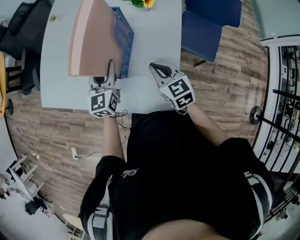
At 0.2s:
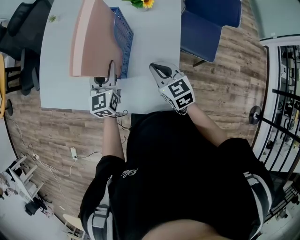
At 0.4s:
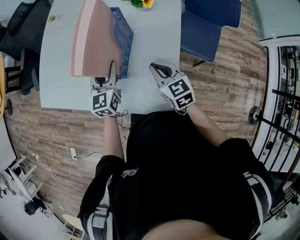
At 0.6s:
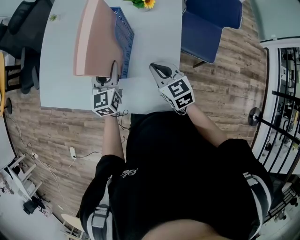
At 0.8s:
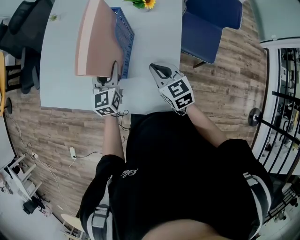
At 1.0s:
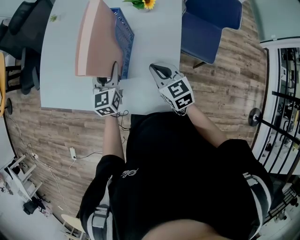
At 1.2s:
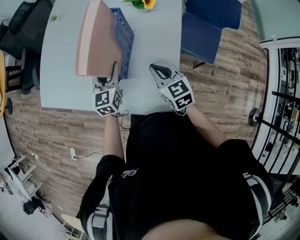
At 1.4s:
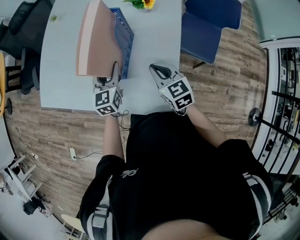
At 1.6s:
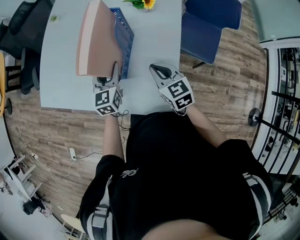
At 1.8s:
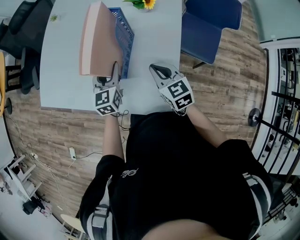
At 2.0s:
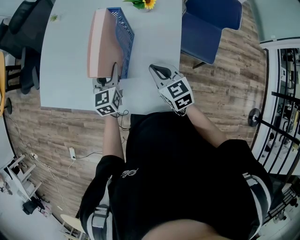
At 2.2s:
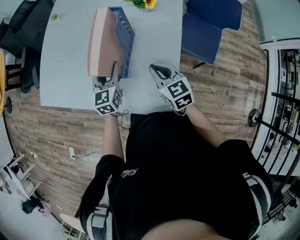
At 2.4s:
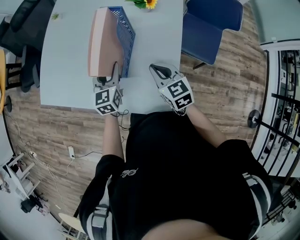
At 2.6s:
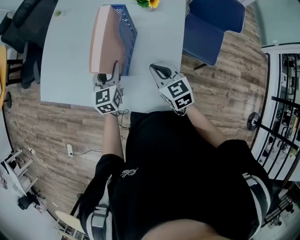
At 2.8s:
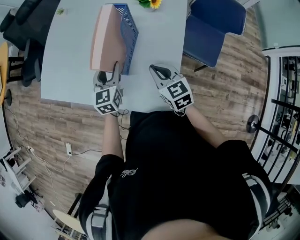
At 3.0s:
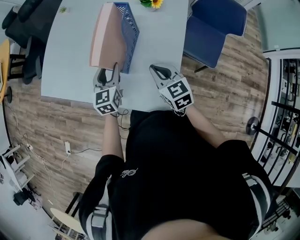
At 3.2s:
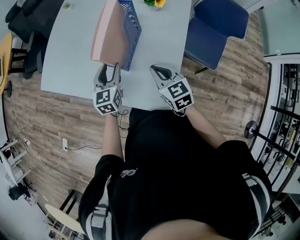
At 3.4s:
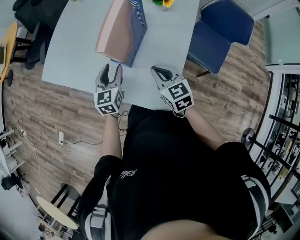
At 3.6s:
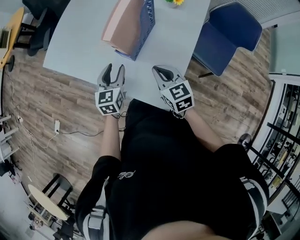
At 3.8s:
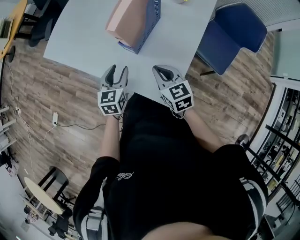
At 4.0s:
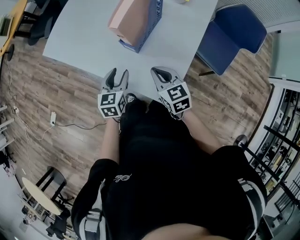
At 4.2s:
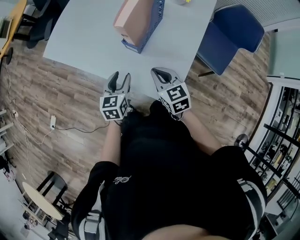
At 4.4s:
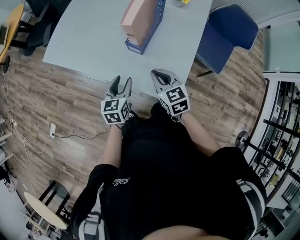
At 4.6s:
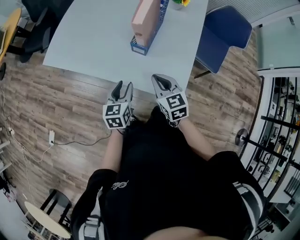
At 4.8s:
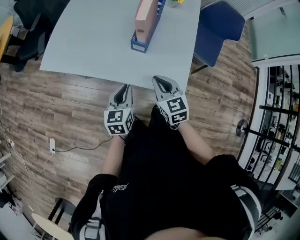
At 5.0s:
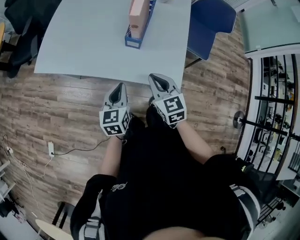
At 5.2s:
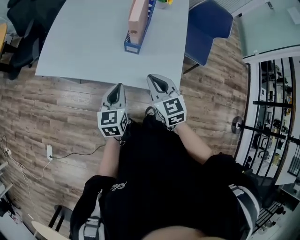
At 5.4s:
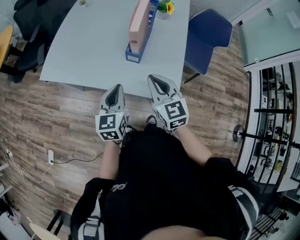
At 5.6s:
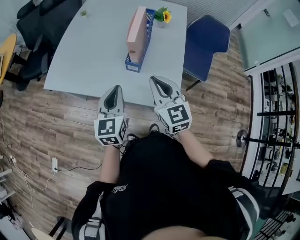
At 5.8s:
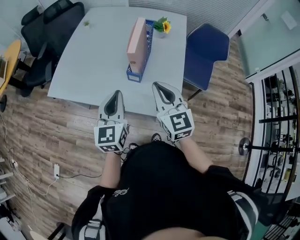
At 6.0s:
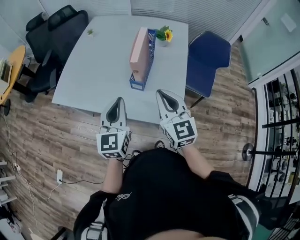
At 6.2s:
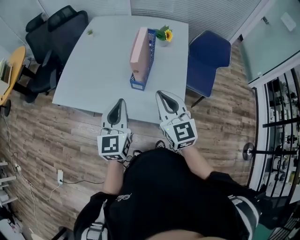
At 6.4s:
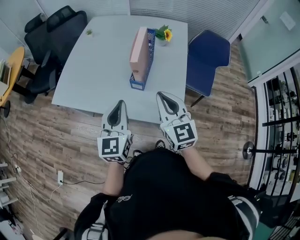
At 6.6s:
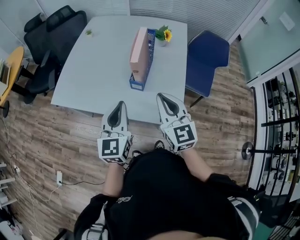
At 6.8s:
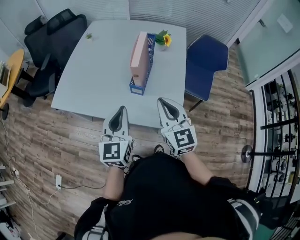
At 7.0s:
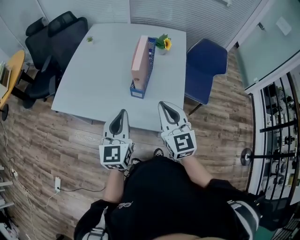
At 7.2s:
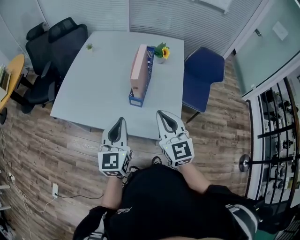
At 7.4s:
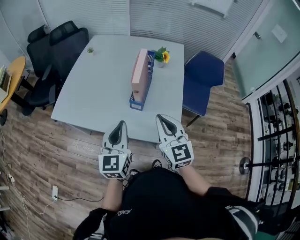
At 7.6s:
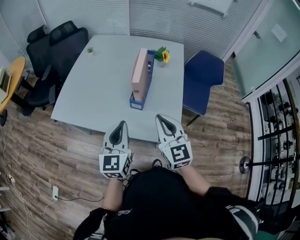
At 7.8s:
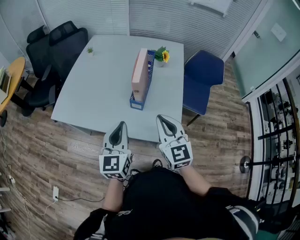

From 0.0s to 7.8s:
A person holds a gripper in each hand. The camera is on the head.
From 0.0s to 1.6s: There are only small adjustments of the grippers.
From 1.6s to 3.2s: The left gripper shifts by about 5 cm.
From 3.2s to 4.6s: The right gripper shifts approximately 15 cm to the left and backward; the left gripper moves backward and to the left, about 20 cm.
From 4.6s to 6.2s: Both grippers travel together upward, roughly 20 cm. The left gripper turns by approximately 30 degrees, and closes its fingers. The right gripper changes its angle by some 30 degrees.
From 6.2s to 7.8s: The grippers make only small movements.

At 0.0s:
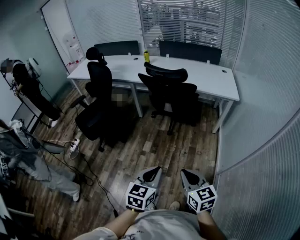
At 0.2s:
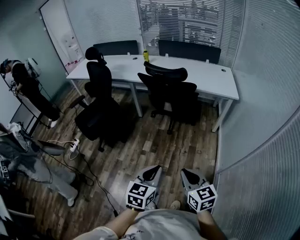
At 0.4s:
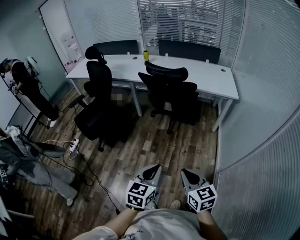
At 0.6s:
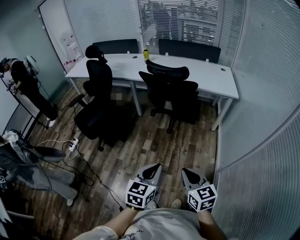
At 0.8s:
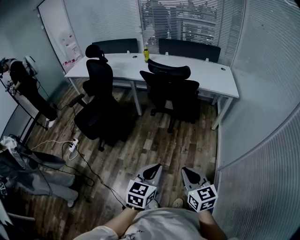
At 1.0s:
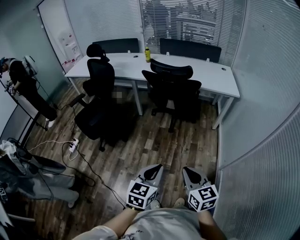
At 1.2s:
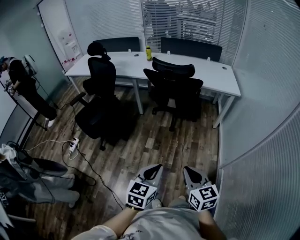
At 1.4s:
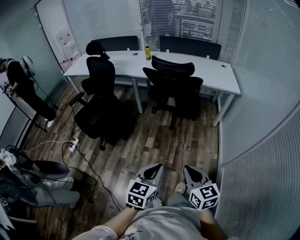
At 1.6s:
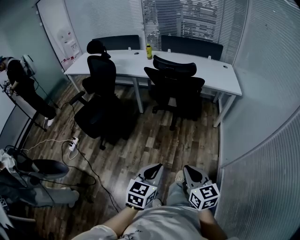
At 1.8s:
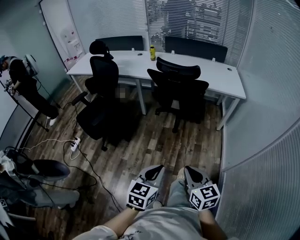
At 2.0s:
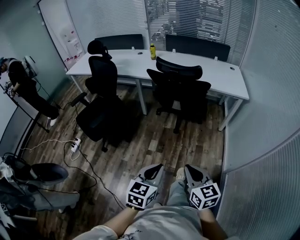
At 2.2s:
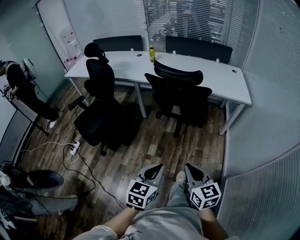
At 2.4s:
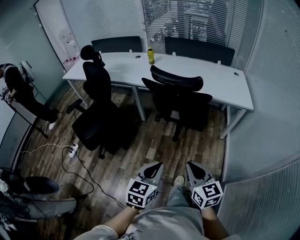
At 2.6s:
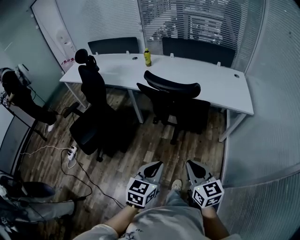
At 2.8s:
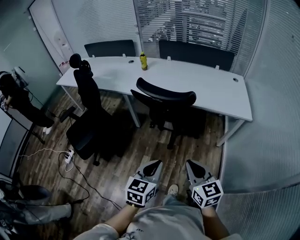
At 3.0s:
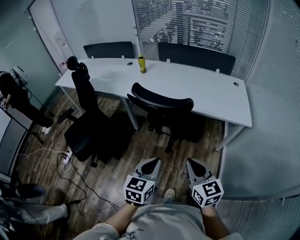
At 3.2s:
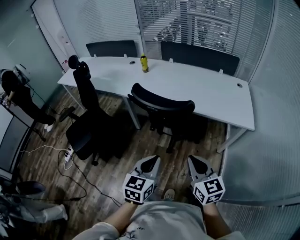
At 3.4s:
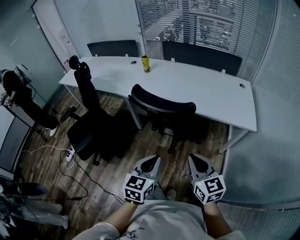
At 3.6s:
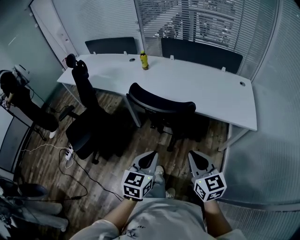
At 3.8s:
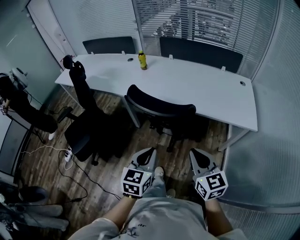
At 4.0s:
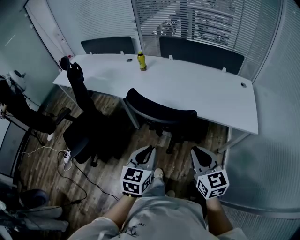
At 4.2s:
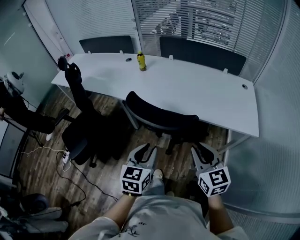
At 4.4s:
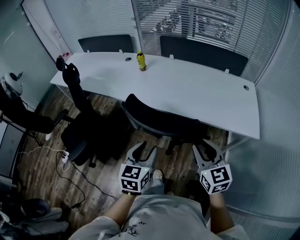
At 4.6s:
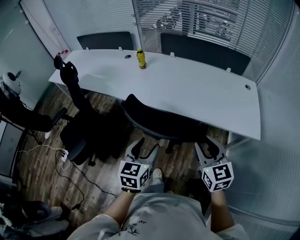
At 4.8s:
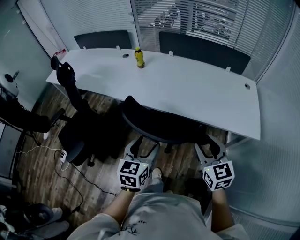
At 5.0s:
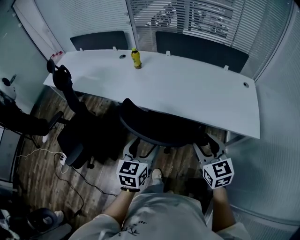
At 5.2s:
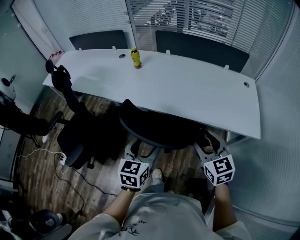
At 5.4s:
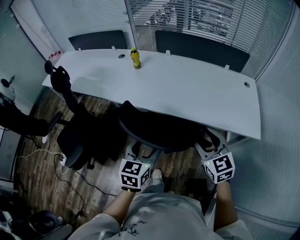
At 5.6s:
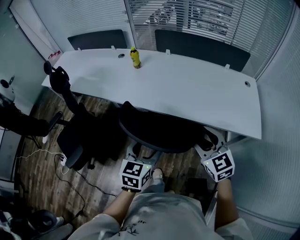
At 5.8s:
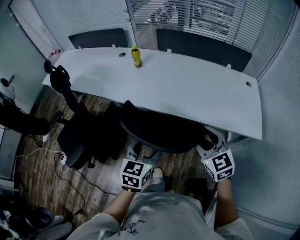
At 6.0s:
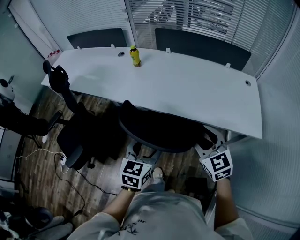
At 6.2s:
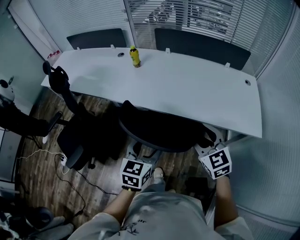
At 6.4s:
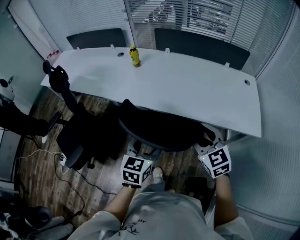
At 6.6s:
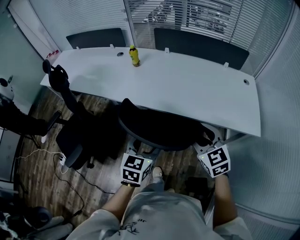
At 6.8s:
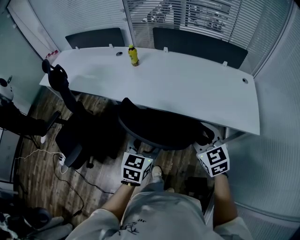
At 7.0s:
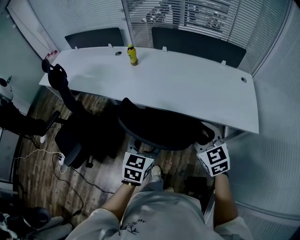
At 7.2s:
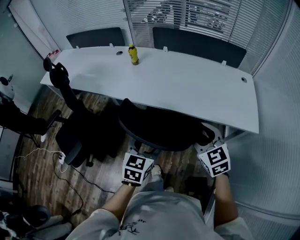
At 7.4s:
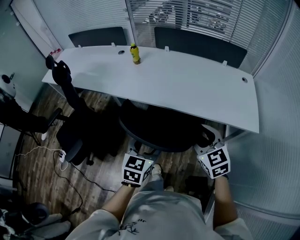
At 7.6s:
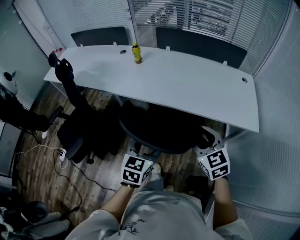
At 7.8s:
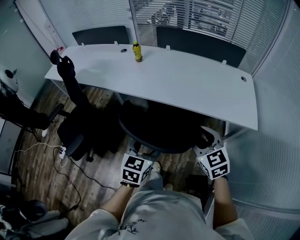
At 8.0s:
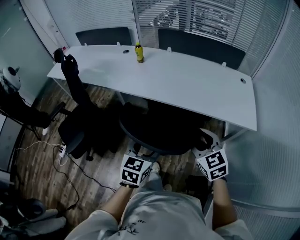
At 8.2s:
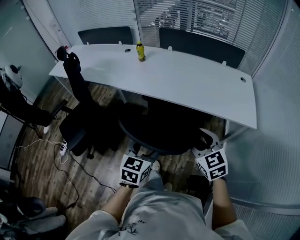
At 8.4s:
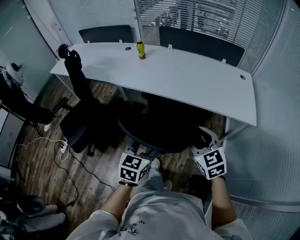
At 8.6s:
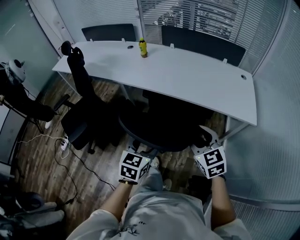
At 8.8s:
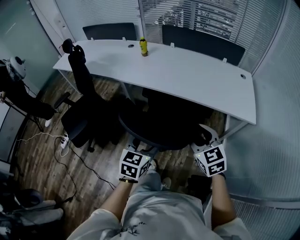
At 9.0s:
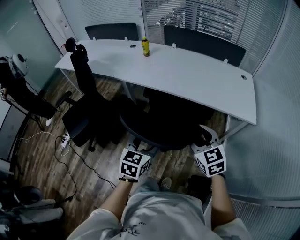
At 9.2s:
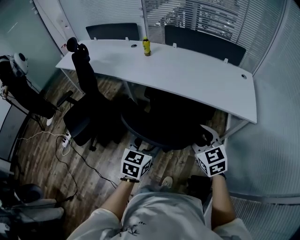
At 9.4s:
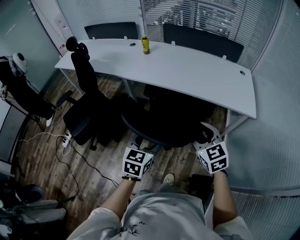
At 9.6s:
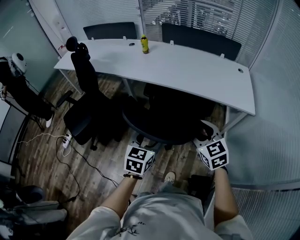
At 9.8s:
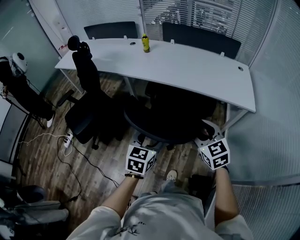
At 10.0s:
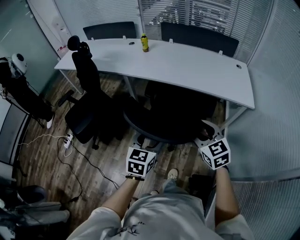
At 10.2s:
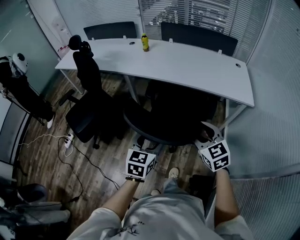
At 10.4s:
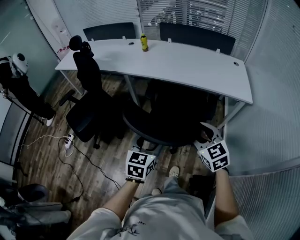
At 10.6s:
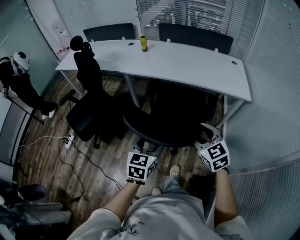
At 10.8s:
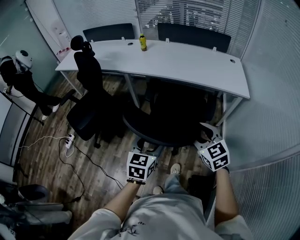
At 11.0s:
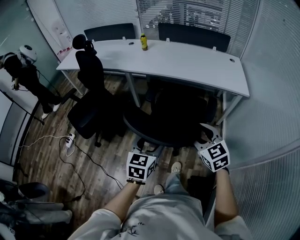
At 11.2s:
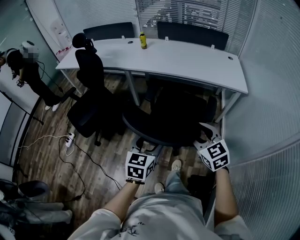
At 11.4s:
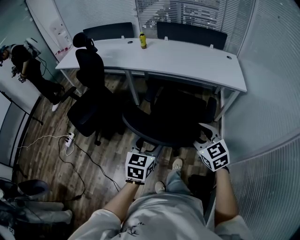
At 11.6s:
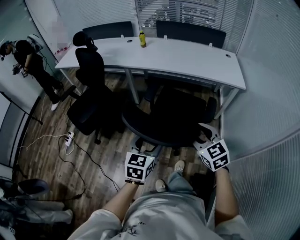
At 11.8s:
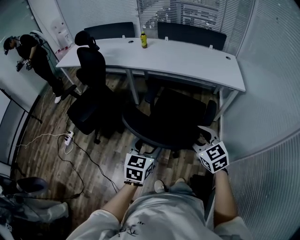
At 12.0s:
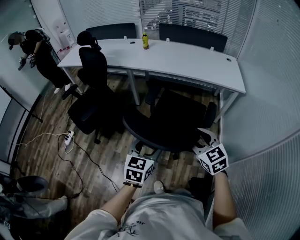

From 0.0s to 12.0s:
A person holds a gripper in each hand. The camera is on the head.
From 0.0s to 1.6s: The grippers both shift to the left by some 10 cm.
From 1.6s to 3.0s: Both grippers are carried forward, roughly 40 cm.
From 3.0s to 4.4s: The grippers both shift forward by roughly 20 cm. The right gripper opens. Meanwhile the left gripper opens up.
From 4.4s to 6.0s: The two grippers go about 10 cm forward. The left gripper opens up. The right gripper opens its fingers.
From 6.0s to 7.6s: The two grippers go about 5 cm backward.
From 7.6s to 9.0s: Both grippers travel together backward, roughly 15 cm.
From 9.0s to 10.4s: Both grippers move backward, roughly 15 cm.
From 10.4s to 12.0s: The grippers both shift backward by roughly 15 cm.

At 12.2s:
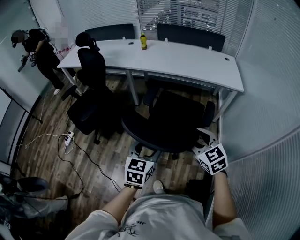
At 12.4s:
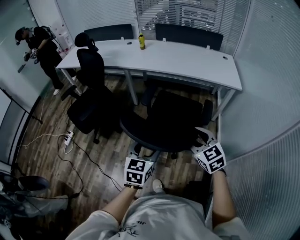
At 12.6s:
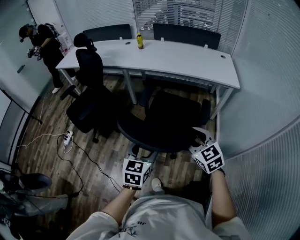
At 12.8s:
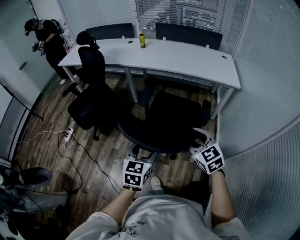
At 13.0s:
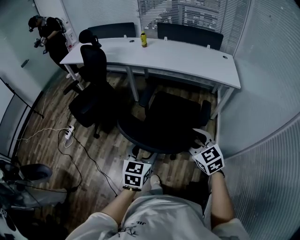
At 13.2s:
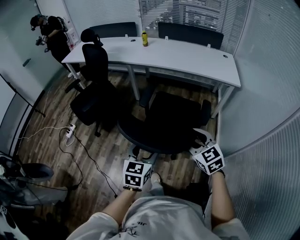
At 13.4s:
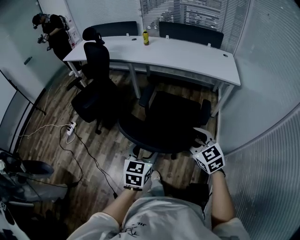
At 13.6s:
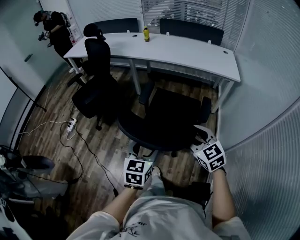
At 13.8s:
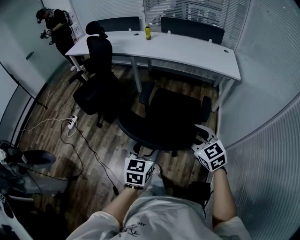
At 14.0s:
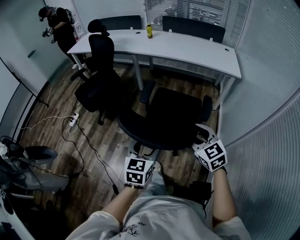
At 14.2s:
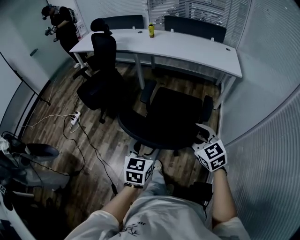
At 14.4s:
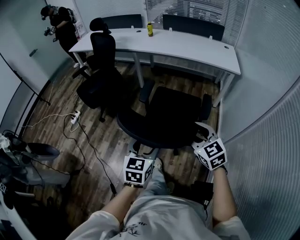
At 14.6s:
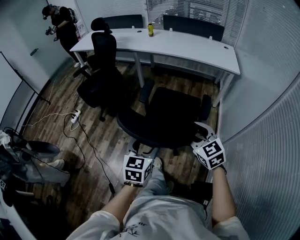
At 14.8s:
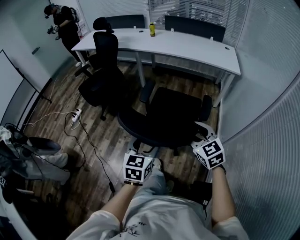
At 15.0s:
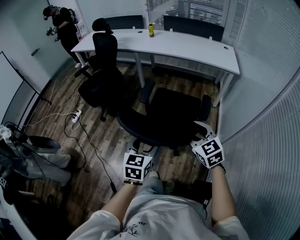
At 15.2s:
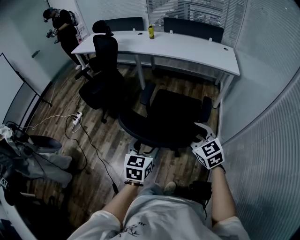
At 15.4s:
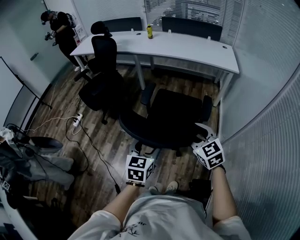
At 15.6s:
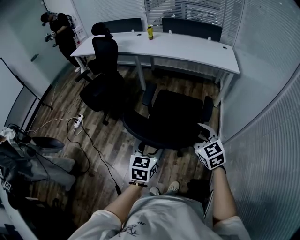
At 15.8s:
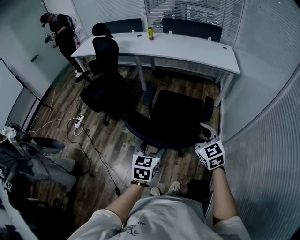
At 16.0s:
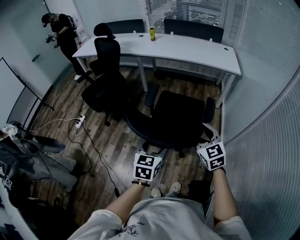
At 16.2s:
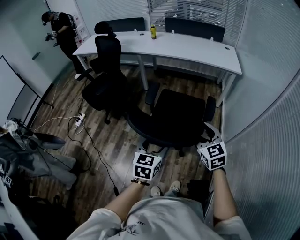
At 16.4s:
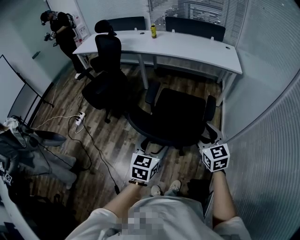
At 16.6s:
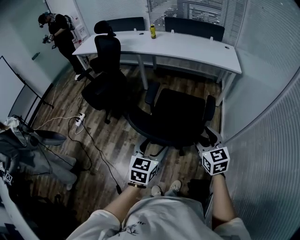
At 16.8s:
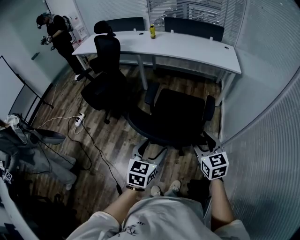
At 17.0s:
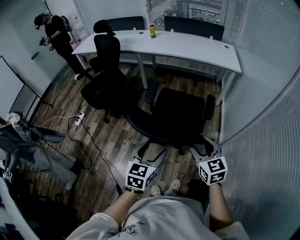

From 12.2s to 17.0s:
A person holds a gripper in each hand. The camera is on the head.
From 12.2s to 13.8s: Both grippers move backward, some 15 cm.
From 13.8s to 15.4s: The grippers both shift backward by roughly 10 cm.
From 15.4s to 17.0s: Both grippers move backward, approximately 5 cm.
